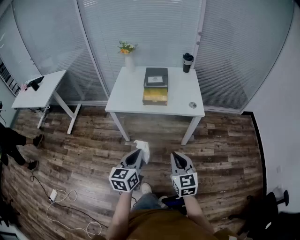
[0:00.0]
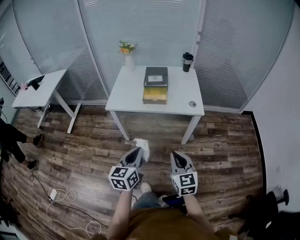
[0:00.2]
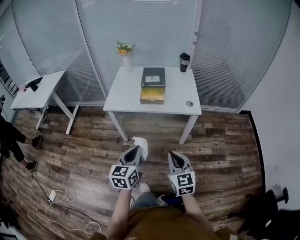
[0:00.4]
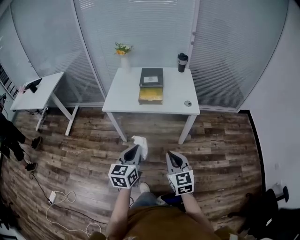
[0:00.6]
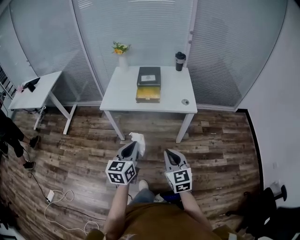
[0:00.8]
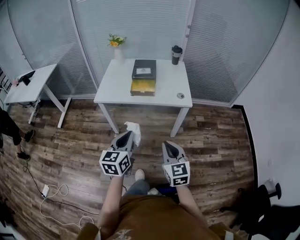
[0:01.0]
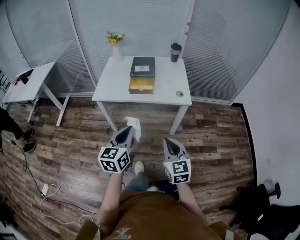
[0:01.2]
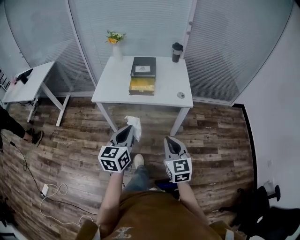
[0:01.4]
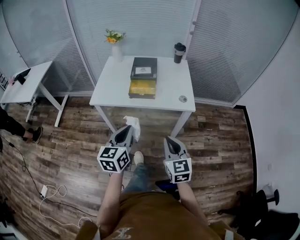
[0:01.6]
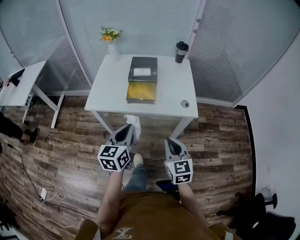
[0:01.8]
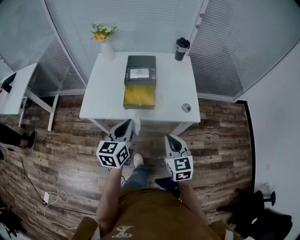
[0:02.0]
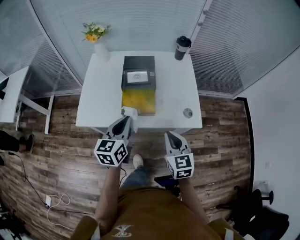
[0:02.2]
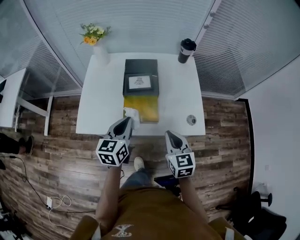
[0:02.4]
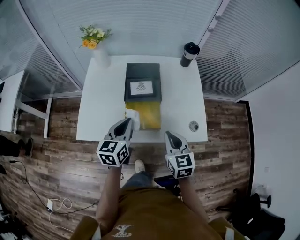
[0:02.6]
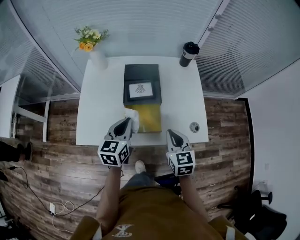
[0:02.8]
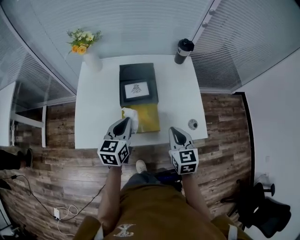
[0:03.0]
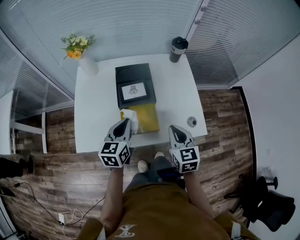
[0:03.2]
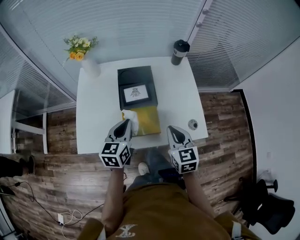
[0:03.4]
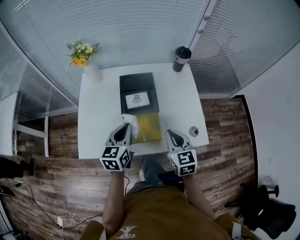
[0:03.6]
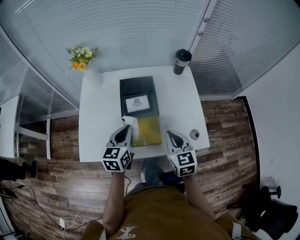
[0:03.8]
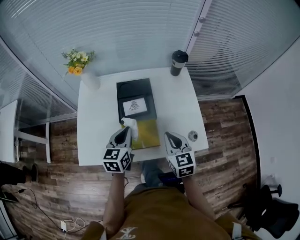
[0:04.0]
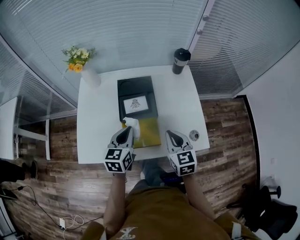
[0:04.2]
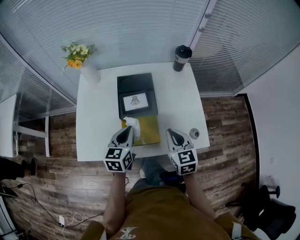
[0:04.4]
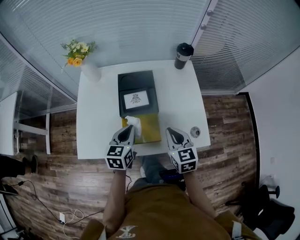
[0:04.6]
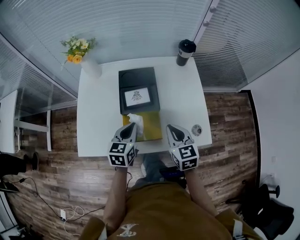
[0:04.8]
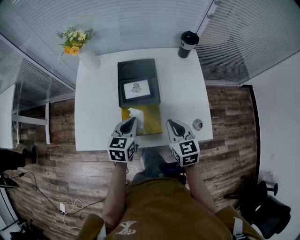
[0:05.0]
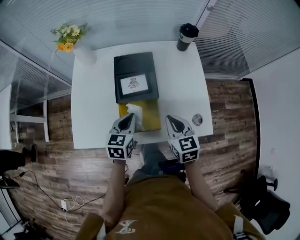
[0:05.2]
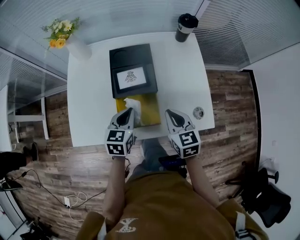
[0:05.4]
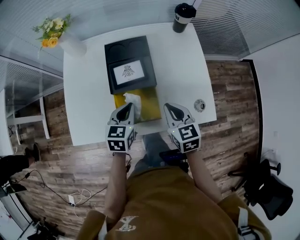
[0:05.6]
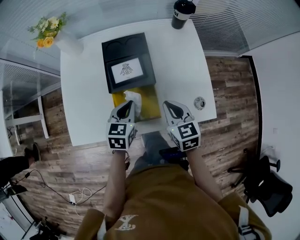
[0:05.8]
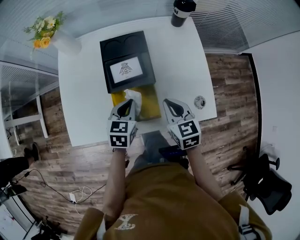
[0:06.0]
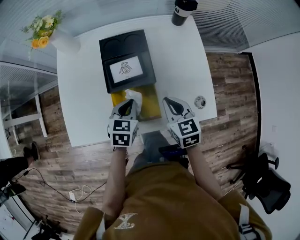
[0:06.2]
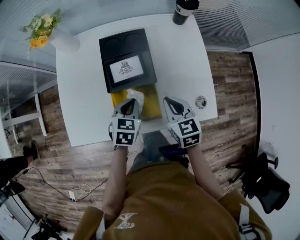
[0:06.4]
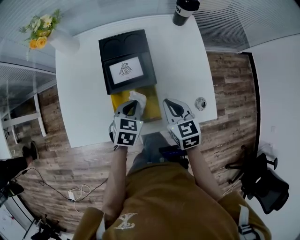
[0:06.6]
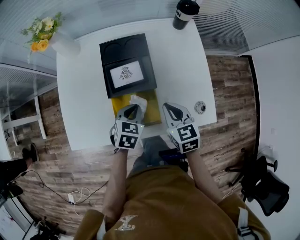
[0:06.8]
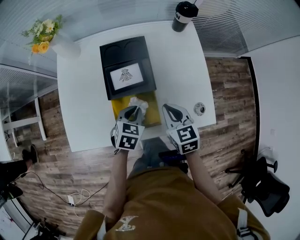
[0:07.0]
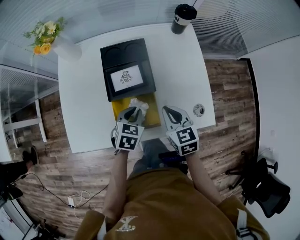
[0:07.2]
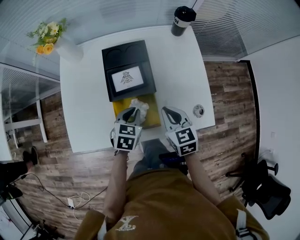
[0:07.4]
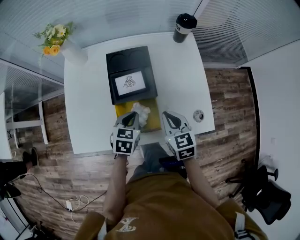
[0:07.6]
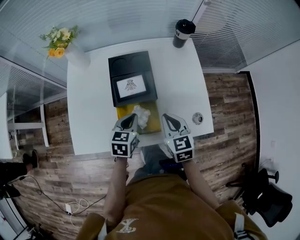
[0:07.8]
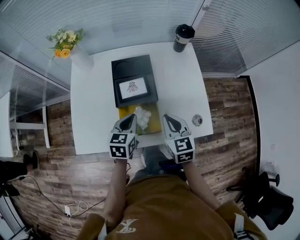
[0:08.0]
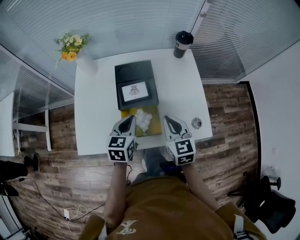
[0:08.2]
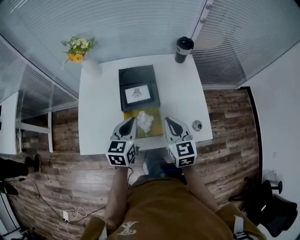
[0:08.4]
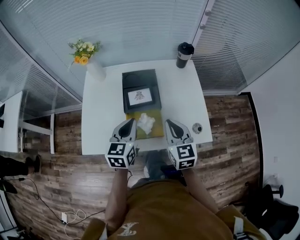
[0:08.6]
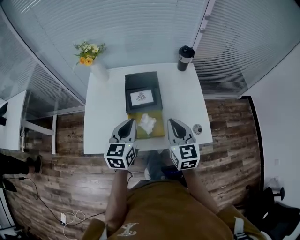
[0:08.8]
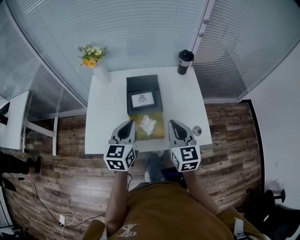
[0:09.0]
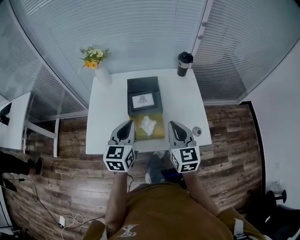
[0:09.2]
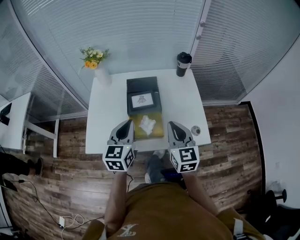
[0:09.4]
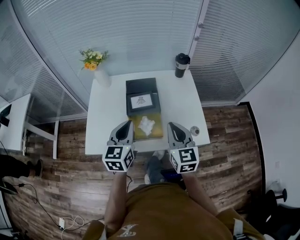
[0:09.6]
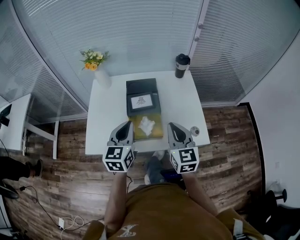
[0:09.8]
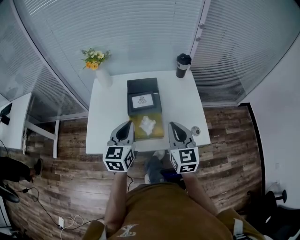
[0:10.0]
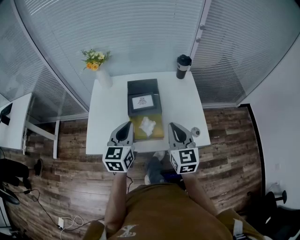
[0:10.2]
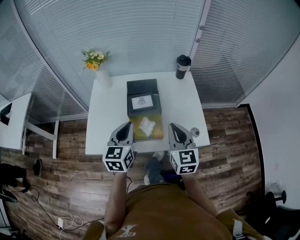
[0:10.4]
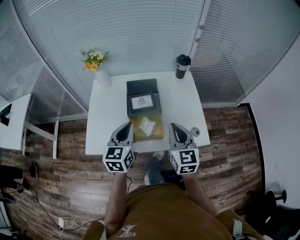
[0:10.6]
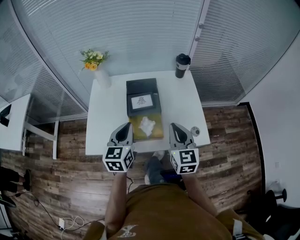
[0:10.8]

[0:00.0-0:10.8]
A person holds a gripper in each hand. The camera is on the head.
0.0 to 1.6 s: Both grippers move forward, roughly 10 cm.
1.6 to 3.0 s: The grippers both shift forward by about 35 cm.
3.0 to 4.6 s: There are only small adjustments of the grippers.
4.6 to 6.2 s: Both grippers travel together downward, approximately 10 cm. The left gripper rotates roughly 20 degrees.
6.2 to 7.8 s: There are only small adjustments of the grippers.
7.8 to 9.2 s: The right gripper shifts roughly 15 cm upward and backward, and swivels some 20 degrees. Meanwhile the left gripper travels upward by about 20 cm, and rotates approximately 30 degrees.
9.2 to 10.8 s: The grippers stay close to where they were, moving slightly.

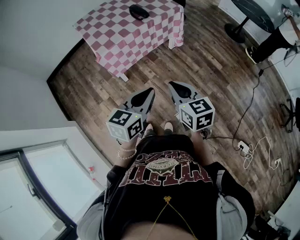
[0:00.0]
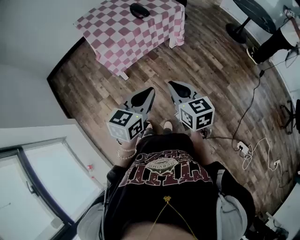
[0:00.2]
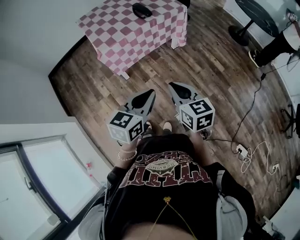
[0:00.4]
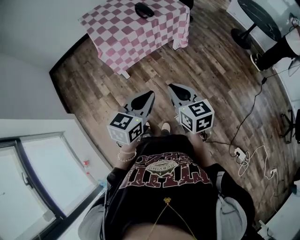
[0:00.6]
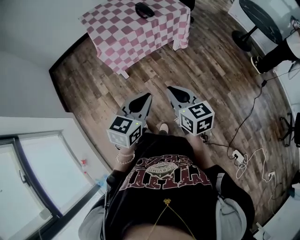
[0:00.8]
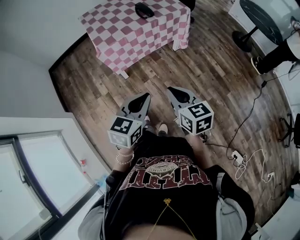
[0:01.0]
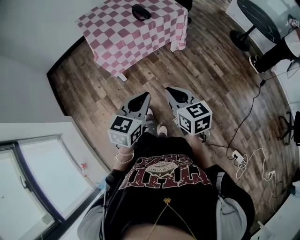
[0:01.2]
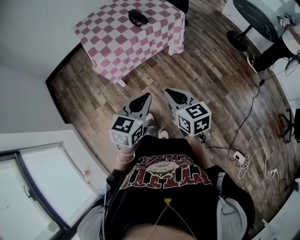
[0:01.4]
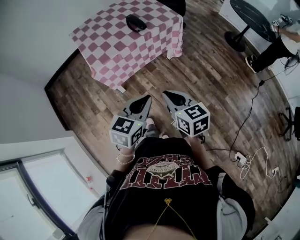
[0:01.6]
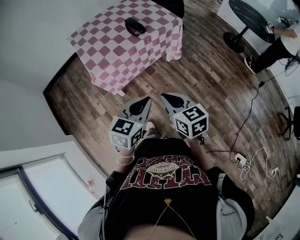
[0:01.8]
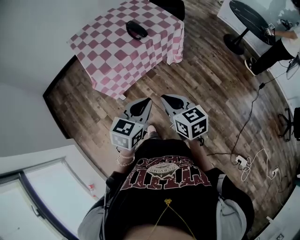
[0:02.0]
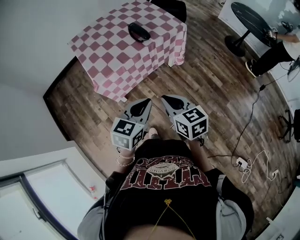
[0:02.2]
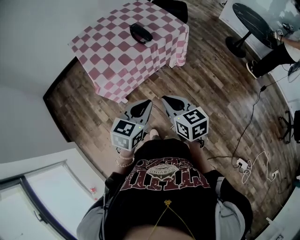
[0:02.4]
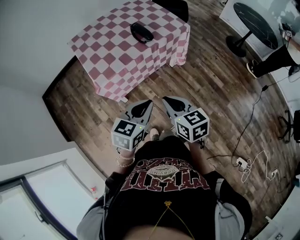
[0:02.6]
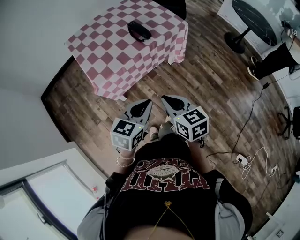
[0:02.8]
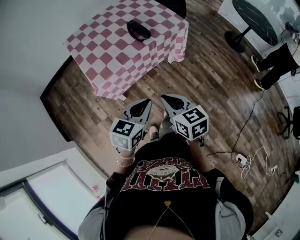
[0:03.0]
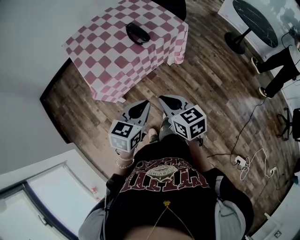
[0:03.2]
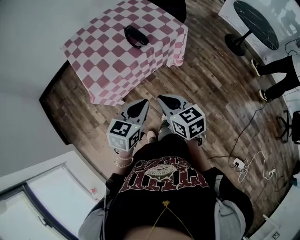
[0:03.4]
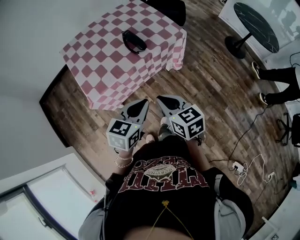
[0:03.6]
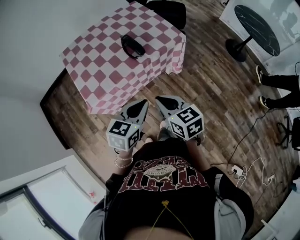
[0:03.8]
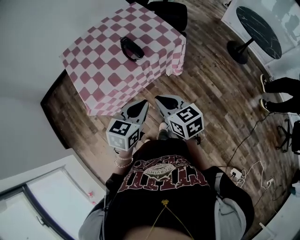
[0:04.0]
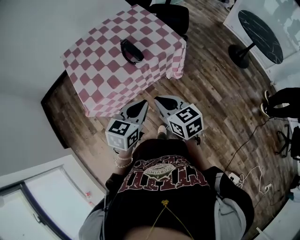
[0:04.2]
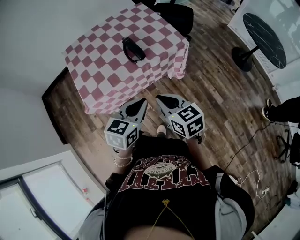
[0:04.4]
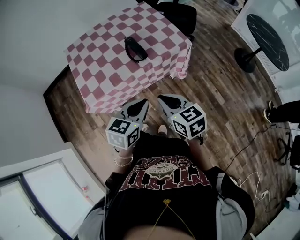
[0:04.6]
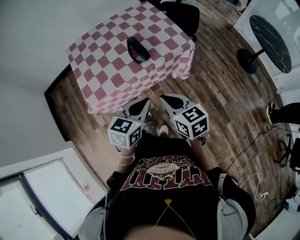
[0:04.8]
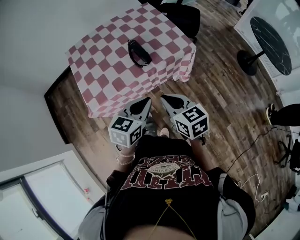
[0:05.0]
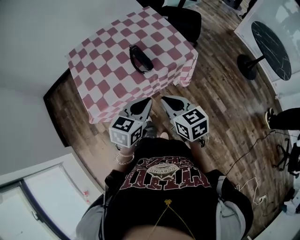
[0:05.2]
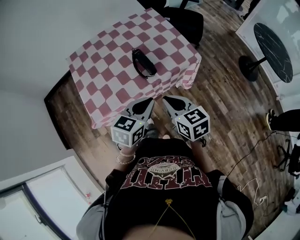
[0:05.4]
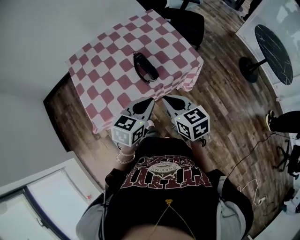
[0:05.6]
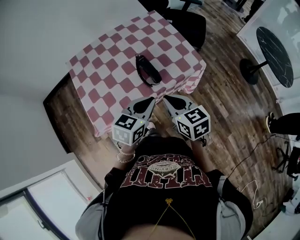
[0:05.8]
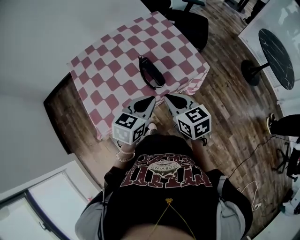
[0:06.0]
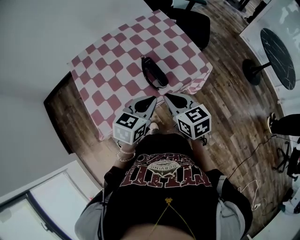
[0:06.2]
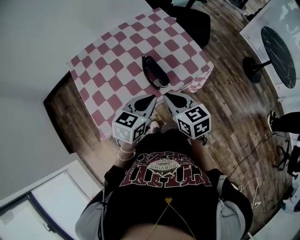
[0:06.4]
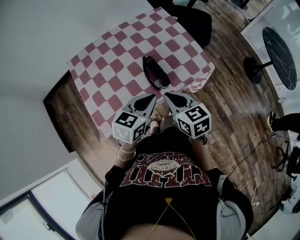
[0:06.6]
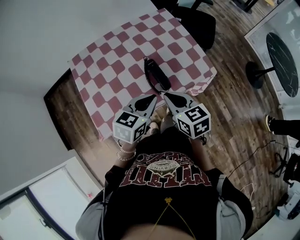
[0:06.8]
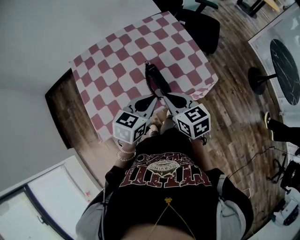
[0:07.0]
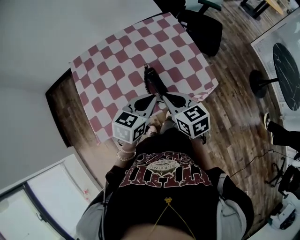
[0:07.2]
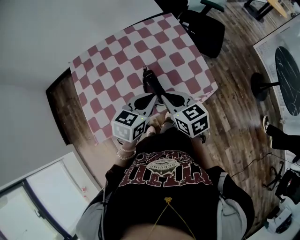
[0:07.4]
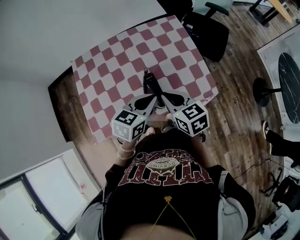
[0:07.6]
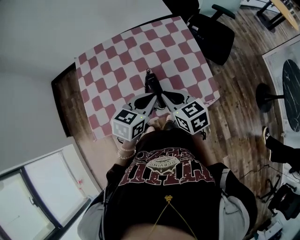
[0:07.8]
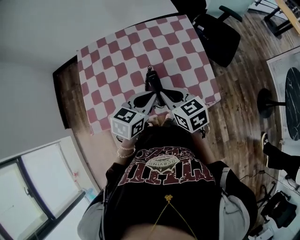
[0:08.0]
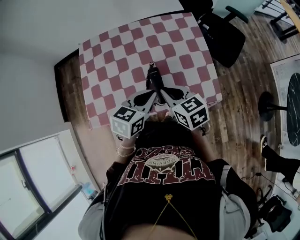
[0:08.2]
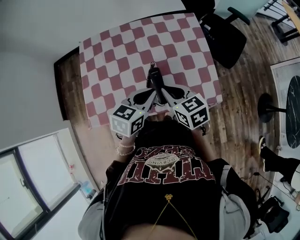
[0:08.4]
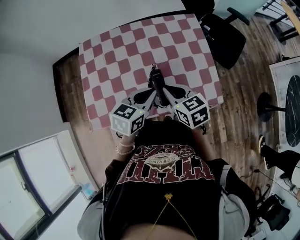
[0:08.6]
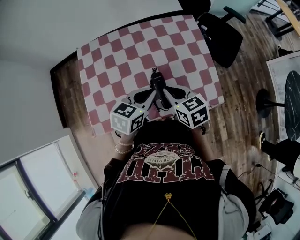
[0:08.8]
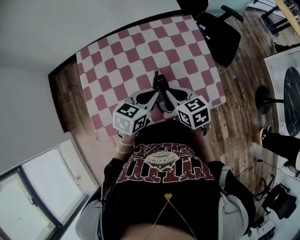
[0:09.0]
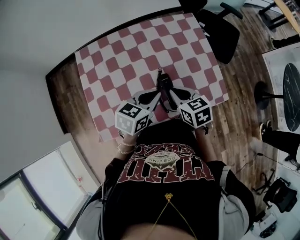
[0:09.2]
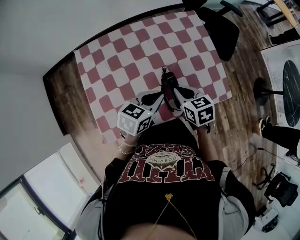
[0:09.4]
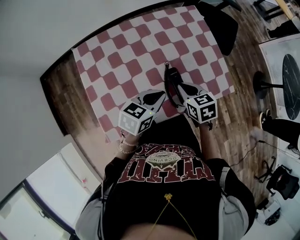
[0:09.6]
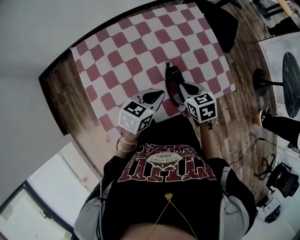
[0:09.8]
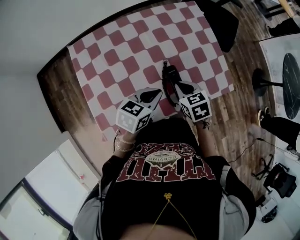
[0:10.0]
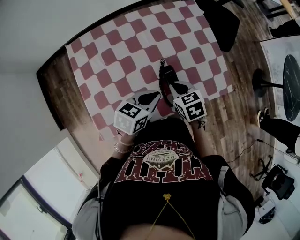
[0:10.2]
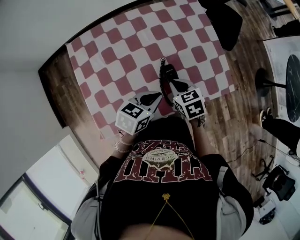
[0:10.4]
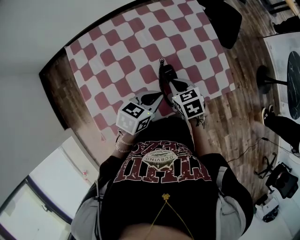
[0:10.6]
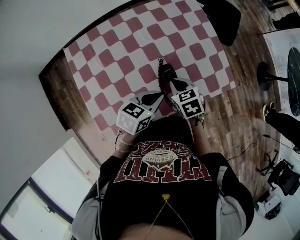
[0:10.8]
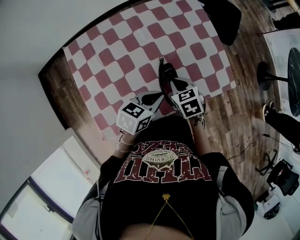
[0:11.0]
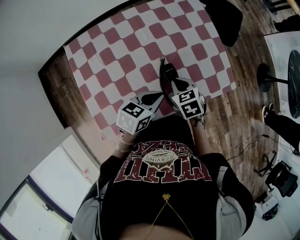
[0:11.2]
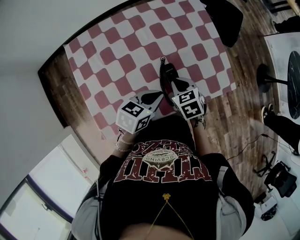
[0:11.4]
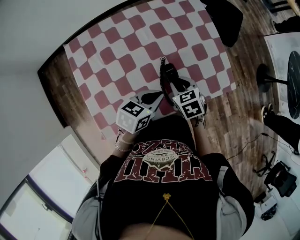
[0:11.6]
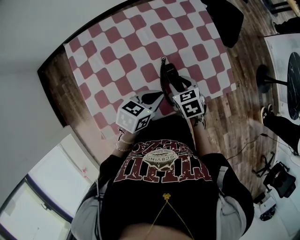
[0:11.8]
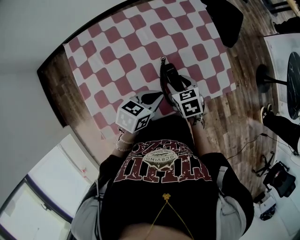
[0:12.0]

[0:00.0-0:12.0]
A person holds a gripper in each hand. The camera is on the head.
0.0 to 1.6 s: Both grippers travel together forward, roughly 10 cm.
1.6 to 3.0 s: The grippers both shift forward and to the left by some 15 cm.
3.0 to 4.4 s: Both grippers move forward and to the right, about 15 cm.
4.4 to 6.0 s: Both grippers travel together forward, about 20 cm.
6.0 to 7.6 s: The grippers both shift forward by roughly 15 cm.
7.6 to 9.0 s: The right gripper is displaced forward by roughly 5 cm. The left gripper changes place by some 5 cm.
9.0 to 10.4 s: The grippers both shift downward by approximately 10 cm.
10.4 to 12.0 s: The right gripper opens up.

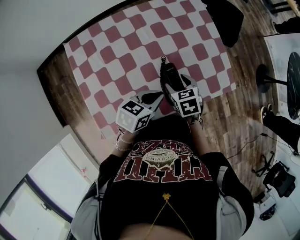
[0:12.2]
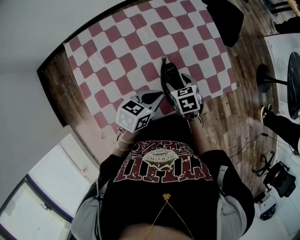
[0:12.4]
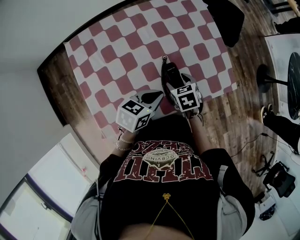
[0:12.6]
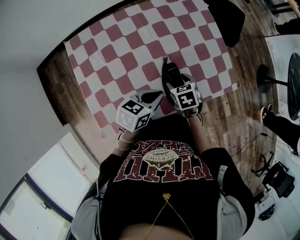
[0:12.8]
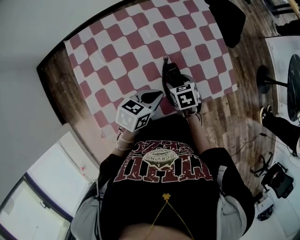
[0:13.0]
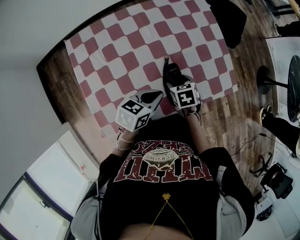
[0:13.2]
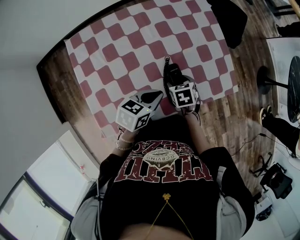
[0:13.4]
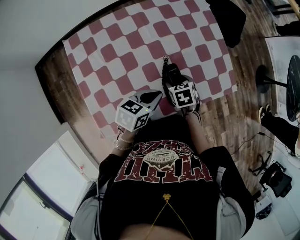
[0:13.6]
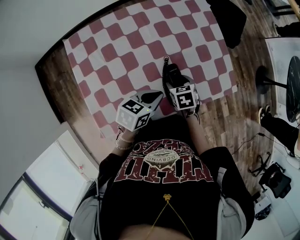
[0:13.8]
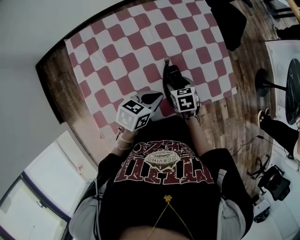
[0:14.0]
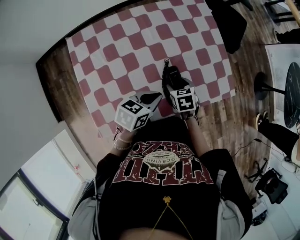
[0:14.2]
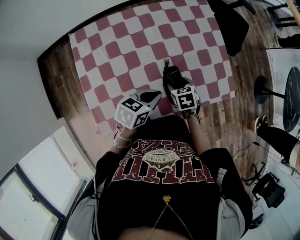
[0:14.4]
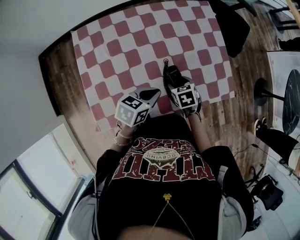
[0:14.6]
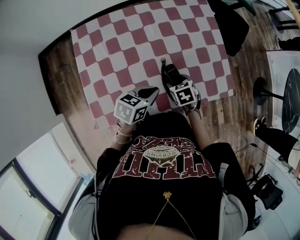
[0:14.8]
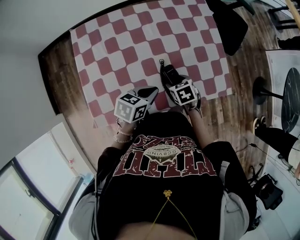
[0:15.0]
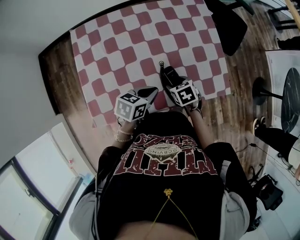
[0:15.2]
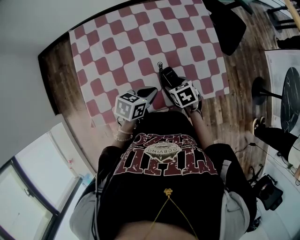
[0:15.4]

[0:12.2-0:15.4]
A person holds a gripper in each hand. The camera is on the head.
12.2 to 13.8 s: The right gripper goes about 5 cm downward.
13.8 to 15.4 s: There are only small adjustments of the grippers.
